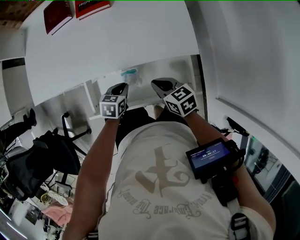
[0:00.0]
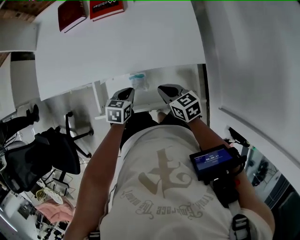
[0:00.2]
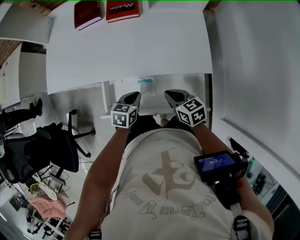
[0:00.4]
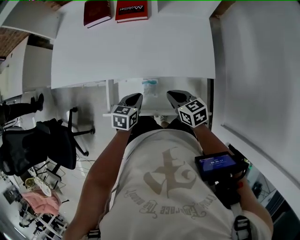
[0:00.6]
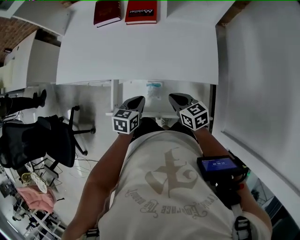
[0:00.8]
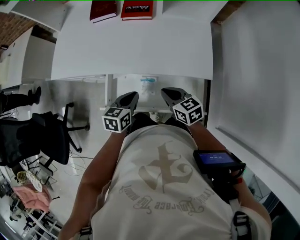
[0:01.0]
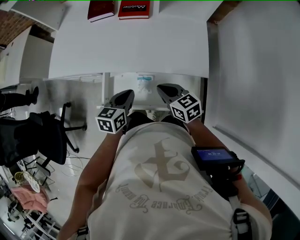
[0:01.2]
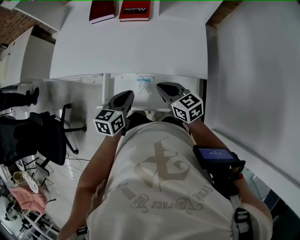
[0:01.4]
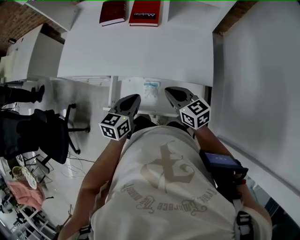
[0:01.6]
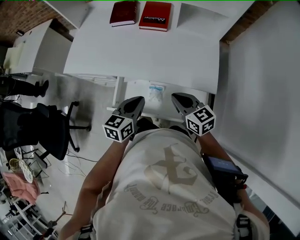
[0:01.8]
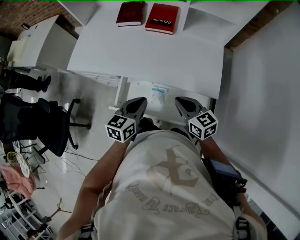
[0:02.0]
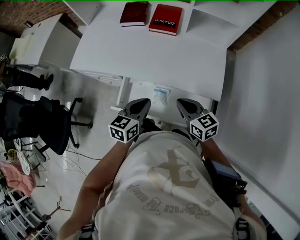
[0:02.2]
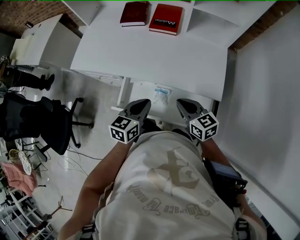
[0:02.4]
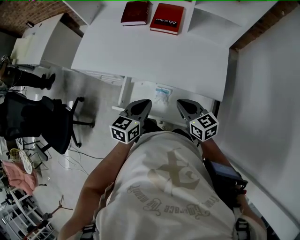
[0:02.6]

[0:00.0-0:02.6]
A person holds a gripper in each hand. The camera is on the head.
0:00.0 to 0:01.2: The right gripper is displaced upward by approximately 5 cm. The left gripper shifts approximately 15 cm upward, and swivels roughly 30 degrees.
0:01.2 to 0:02.6: The left gripper travels upward by about 5 cm.

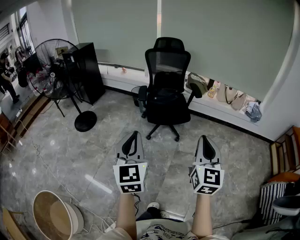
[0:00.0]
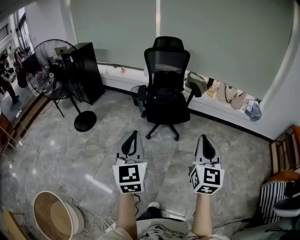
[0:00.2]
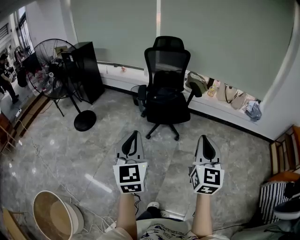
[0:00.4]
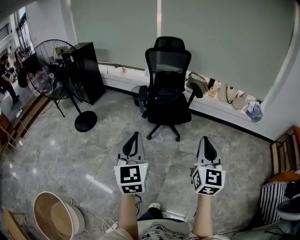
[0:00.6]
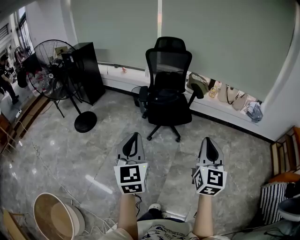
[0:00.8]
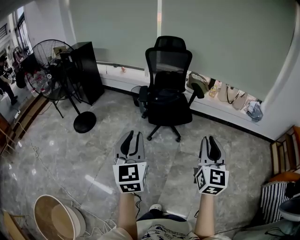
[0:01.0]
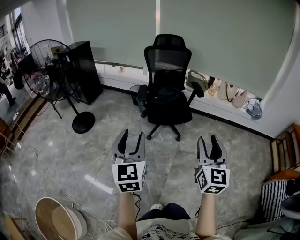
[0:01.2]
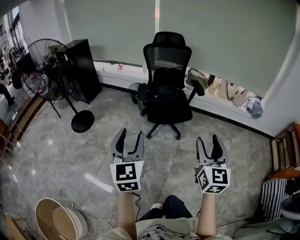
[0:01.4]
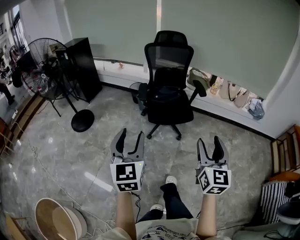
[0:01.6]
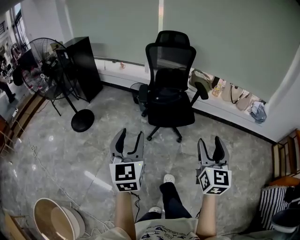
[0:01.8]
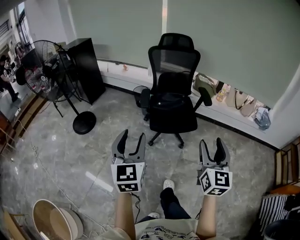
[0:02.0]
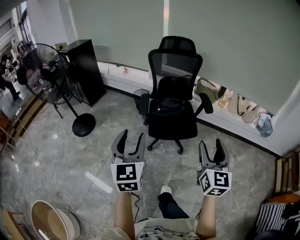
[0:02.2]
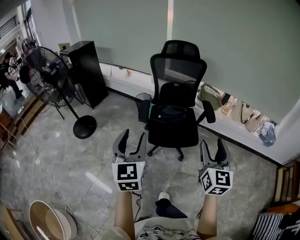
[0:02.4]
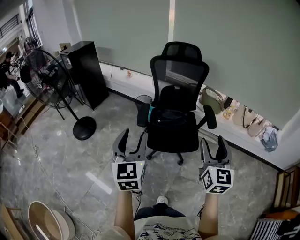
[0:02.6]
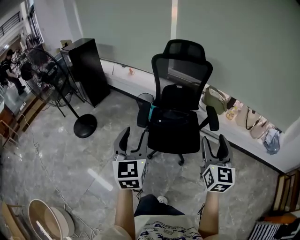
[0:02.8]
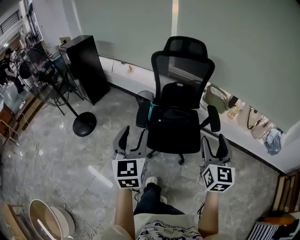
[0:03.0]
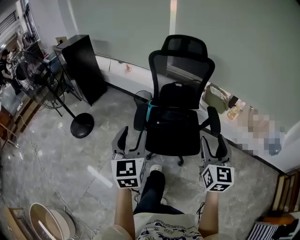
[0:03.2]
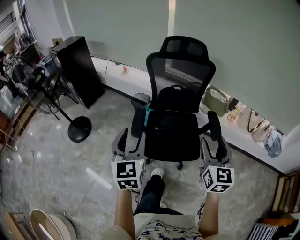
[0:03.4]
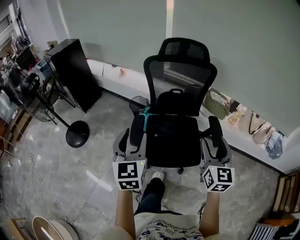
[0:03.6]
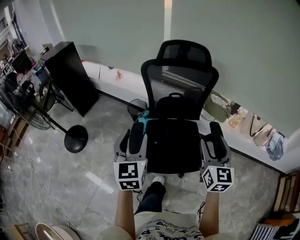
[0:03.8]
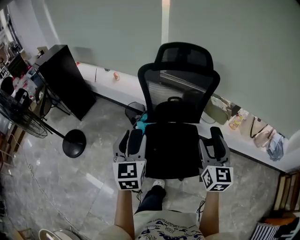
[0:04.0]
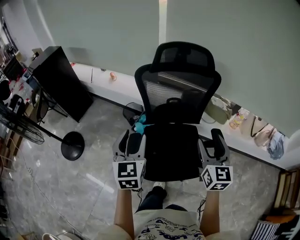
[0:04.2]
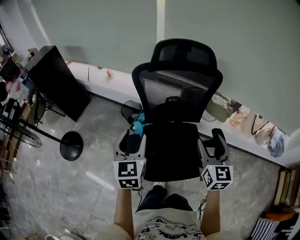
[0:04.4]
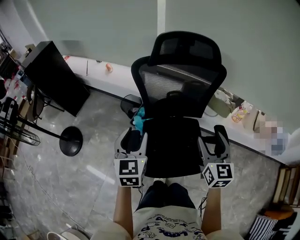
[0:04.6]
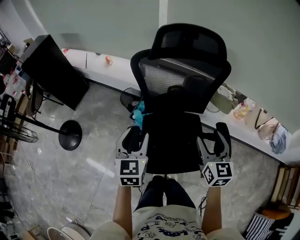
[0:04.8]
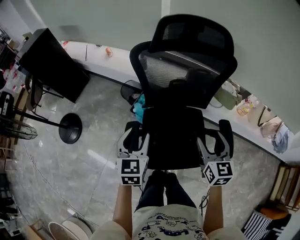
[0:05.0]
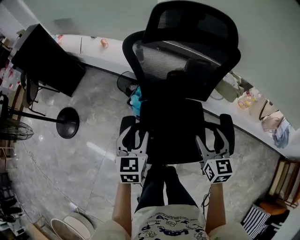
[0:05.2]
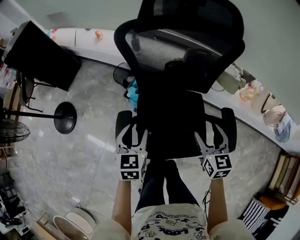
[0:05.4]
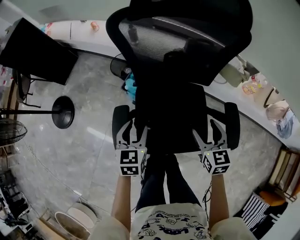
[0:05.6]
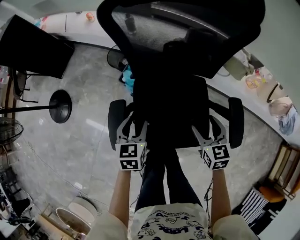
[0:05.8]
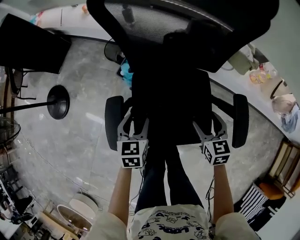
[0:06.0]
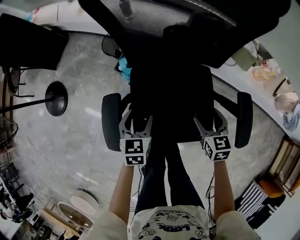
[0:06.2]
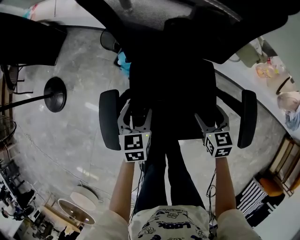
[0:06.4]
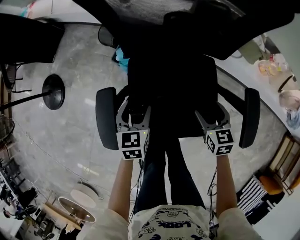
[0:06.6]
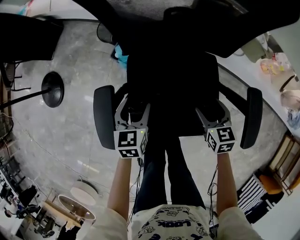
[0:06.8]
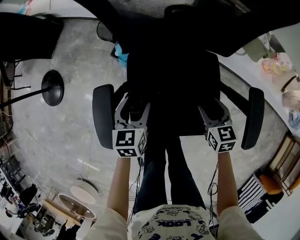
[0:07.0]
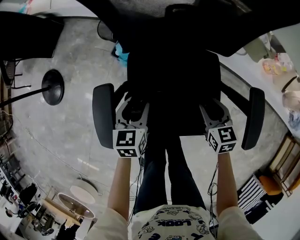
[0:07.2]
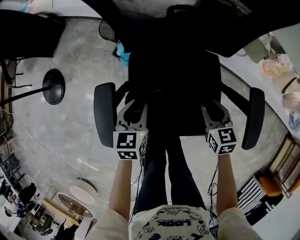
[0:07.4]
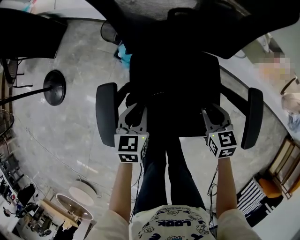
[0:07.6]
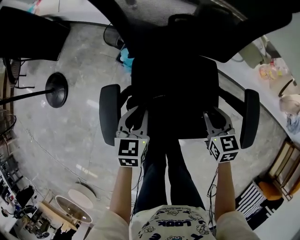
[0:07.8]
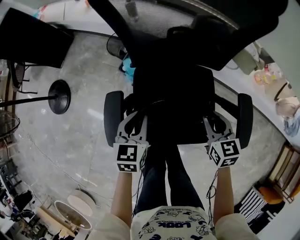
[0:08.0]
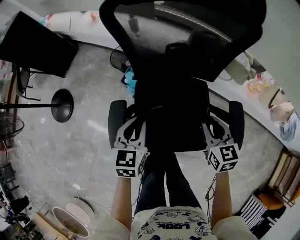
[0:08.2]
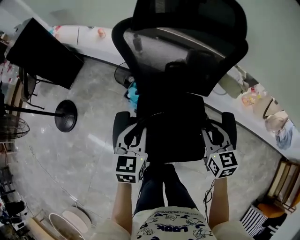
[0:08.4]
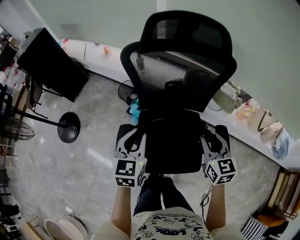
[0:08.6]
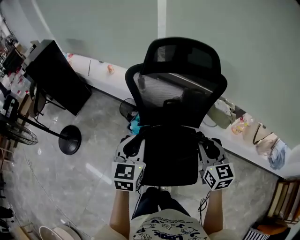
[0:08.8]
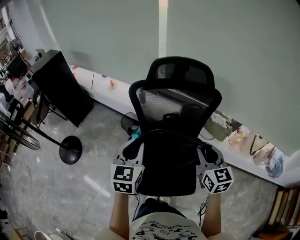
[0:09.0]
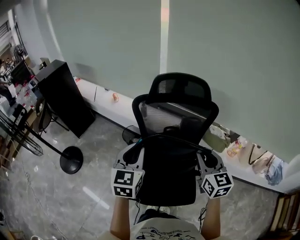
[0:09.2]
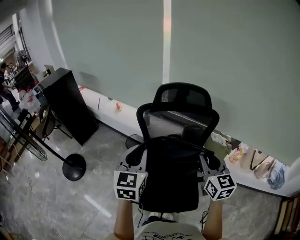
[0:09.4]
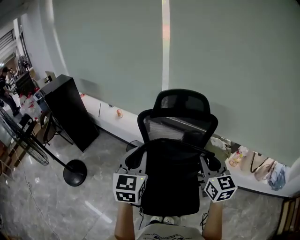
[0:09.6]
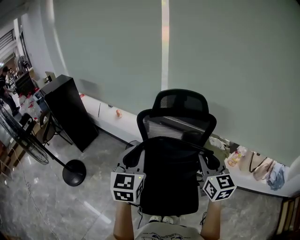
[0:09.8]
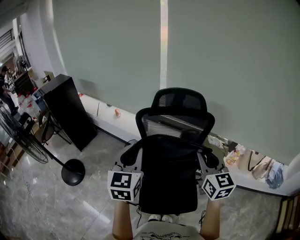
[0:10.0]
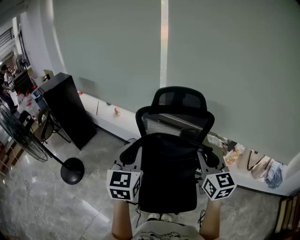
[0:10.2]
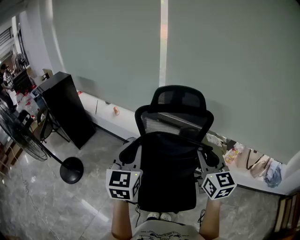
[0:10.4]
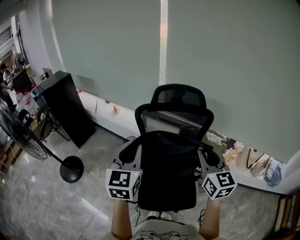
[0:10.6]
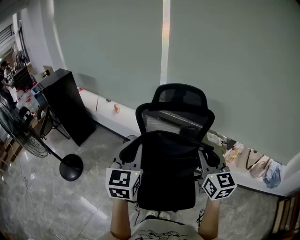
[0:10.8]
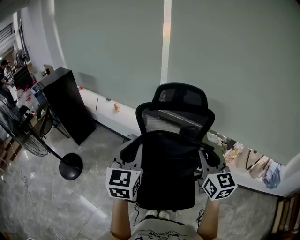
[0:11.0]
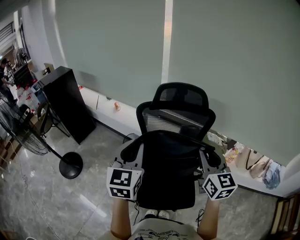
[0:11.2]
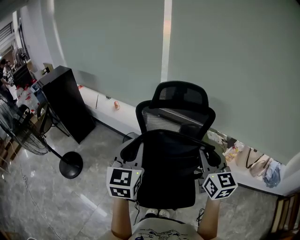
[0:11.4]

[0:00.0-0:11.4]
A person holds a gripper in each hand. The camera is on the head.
0:00.0 to 0:01.4: The left gripper travels forward and to the left by some 10 cm, and opens its fingers. Meanwhile the right gripper heads forward, covering some 10 cm, and opens up.
0:01.4 to 0:02.8: The two grippers go some 40 cm forward.
0:02.8 to 0:04.2: Both grippers are carried forward, about 40 cm.
0:04.2 to 0:05.6: Both grippers travel together downward, some 25 cm. The left gripper swivels some 20 degrees. The right gripper swivels roughly 30 degrees.
0:05.6 to 0:07.2: The two grippers go about 20 cm downward. The right gripper closes up.
0:07.2 to 0:08.6: The two grippers go some 35 cm upward. The left gripper closes up. The right gripper swivels roughly 20 degrees.
0:08.6 to 0:10.0: The two grippers go about 25 cm upward. The right gripper swivels some 20 degrees, while the left gripper turns by approximately 20 degrees.
0:10.0 to 0:11.4: The grippers make only small movements.

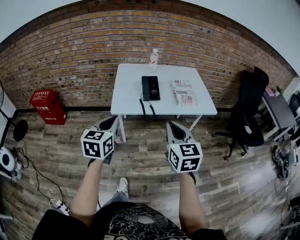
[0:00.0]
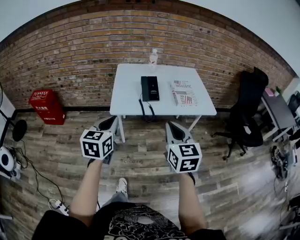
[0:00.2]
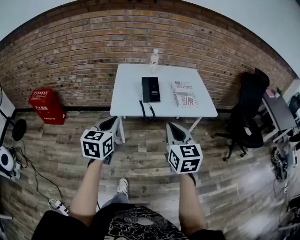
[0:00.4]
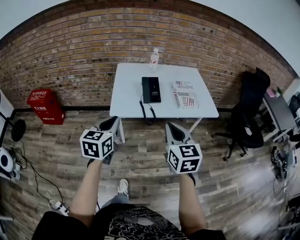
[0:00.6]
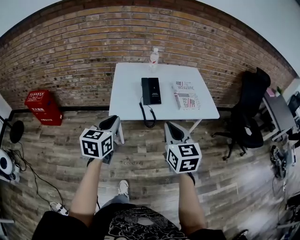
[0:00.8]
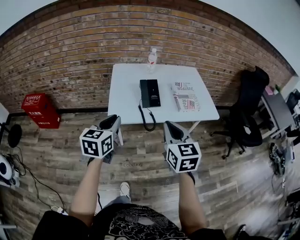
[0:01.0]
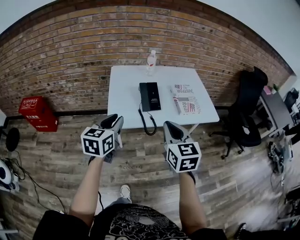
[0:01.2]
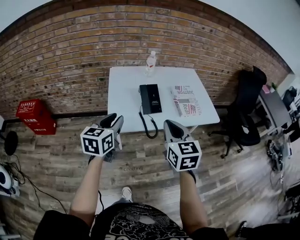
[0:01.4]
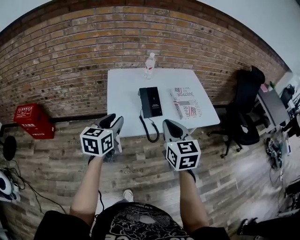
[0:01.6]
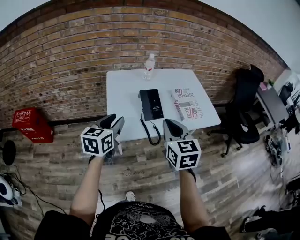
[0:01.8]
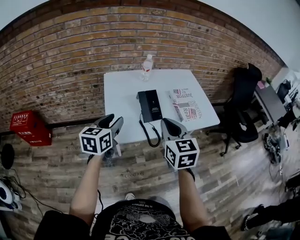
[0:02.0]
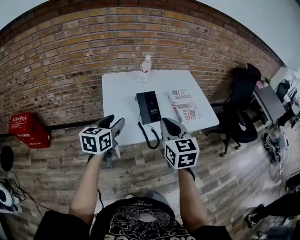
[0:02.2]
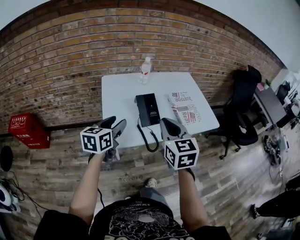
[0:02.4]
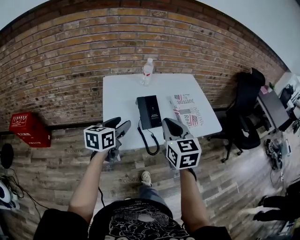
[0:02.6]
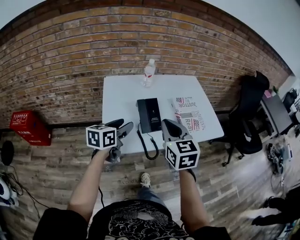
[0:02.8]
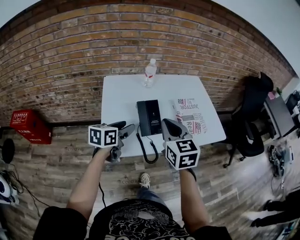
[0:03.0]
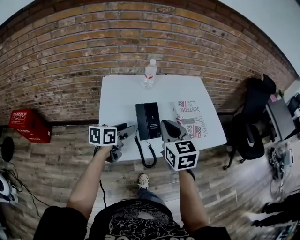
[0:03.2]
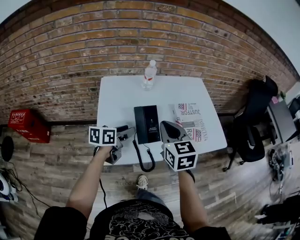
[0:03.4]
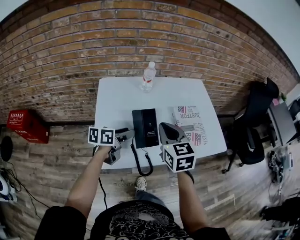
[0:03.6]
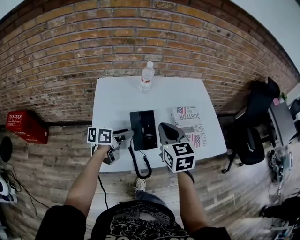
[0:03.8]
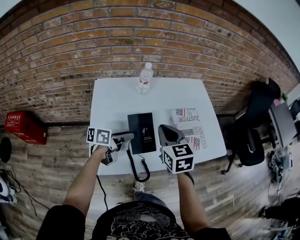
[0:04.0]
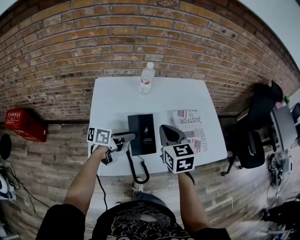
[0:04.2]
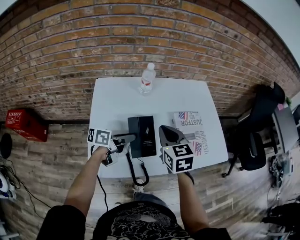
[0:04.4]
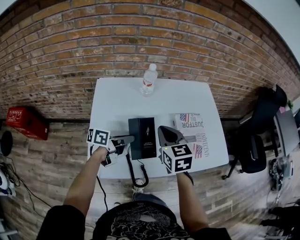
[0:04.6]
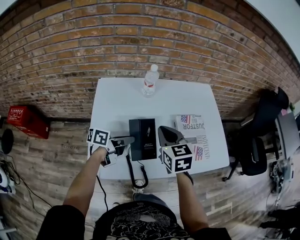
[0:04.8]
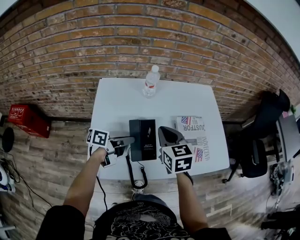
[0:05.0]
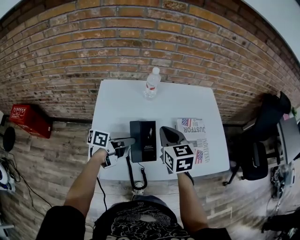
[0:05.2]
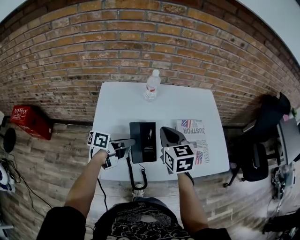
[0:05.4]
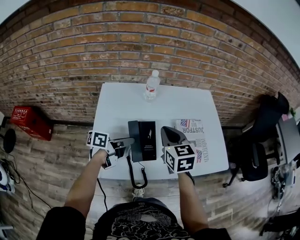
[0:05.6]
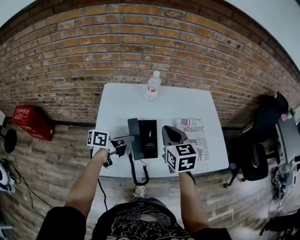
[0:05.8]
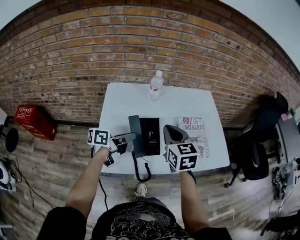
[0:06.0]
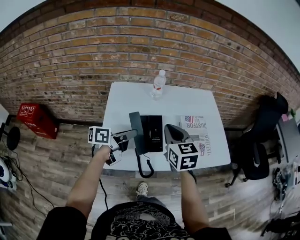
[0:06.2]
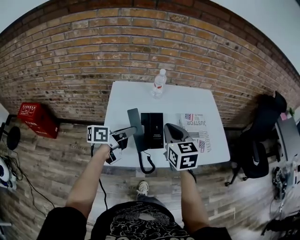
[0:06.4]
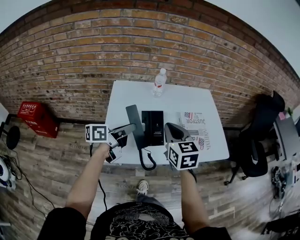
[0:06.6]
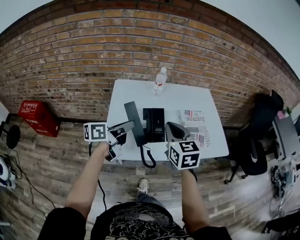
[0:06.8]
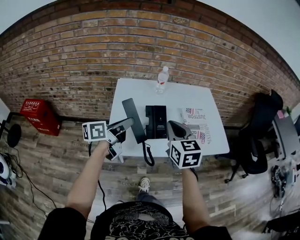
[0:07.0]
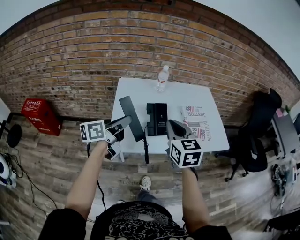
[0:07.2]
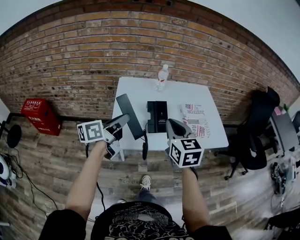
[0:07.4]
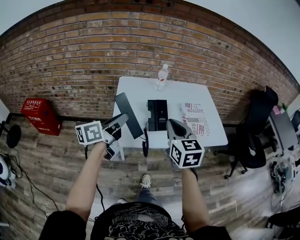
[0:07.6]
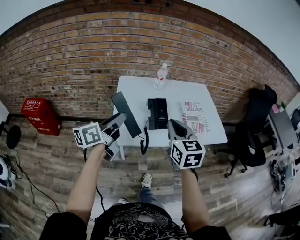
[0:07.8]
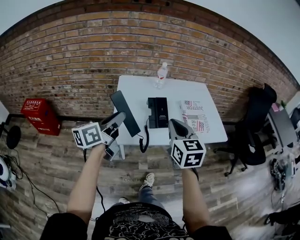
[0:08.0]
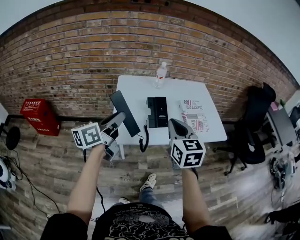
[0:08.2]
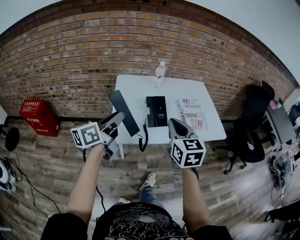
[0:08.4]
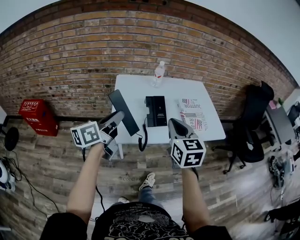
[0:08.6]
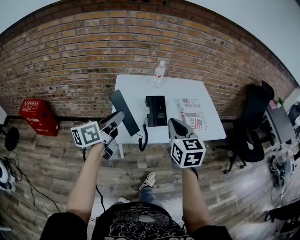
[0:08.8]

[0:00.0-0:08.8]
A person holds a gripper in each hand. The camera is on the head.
0:00.0 to 0:01.4: Both grippers travel together forward, roughly 15 cm.
0:01.4 to 0:03.0: The right gripper is displaced forward by approximately 15 cm. Meanwhile the left gripper goes about 20 cm forward and downward, changes its angle by roughly 20 degrees, and opens its fingers.
0:03.0 to 0:04.4: The two grippers go approximately 15 cm forward and downward. The left gripper changes its angle by about 30 degrees.
0:04.4 to 0:05.8: The grippers make only small movements.
0:05.8 to 0:07.4: The right gripper travels backward by approximately 20 cm. The left gripper heads backward and upward, covering about 20 cm, and swivels about 30 degrees.
0:07.4 to 0:08.8: The left gripper ends up some 5 cm from where it was.

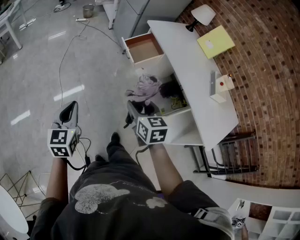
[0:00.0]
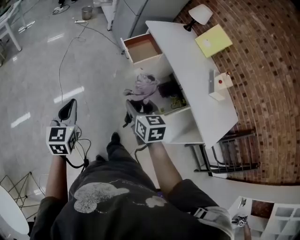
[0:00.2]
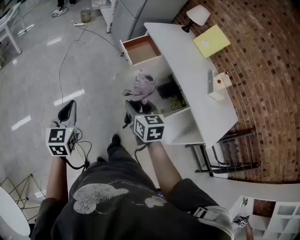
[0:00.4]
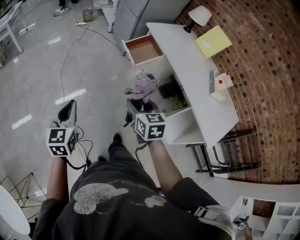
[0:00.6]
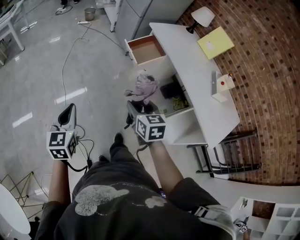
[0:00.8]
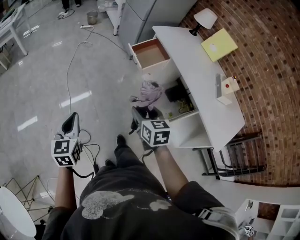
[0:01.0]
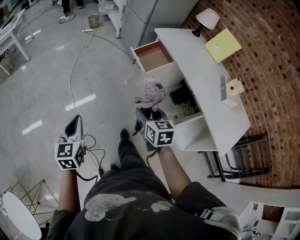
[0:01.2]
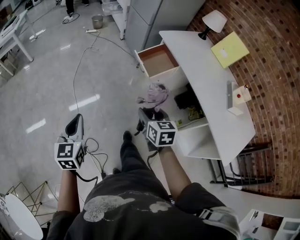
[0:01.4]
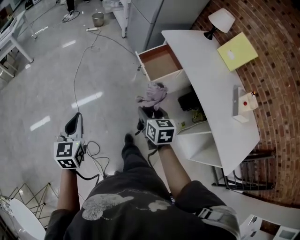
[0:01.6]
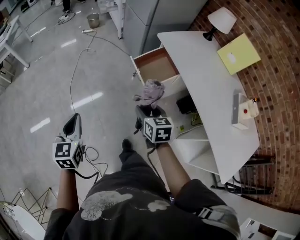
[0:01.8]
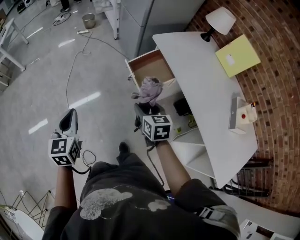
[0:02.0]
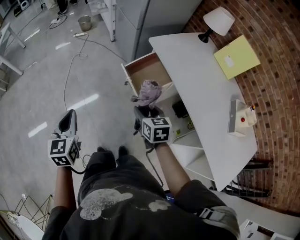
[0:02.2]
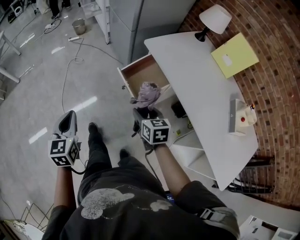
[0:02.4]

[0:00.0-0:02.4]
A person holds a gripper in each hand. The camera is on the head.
0:00.0 to 0:01.2: The left gripper shifts roughly 5 cm to the left.
0:01.2 to 0:02.4: Both grippers move forward, some 35 cm.
